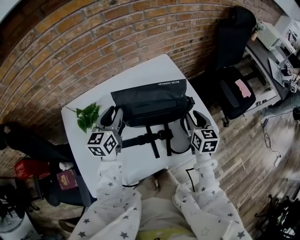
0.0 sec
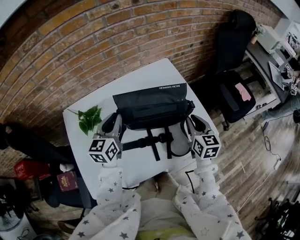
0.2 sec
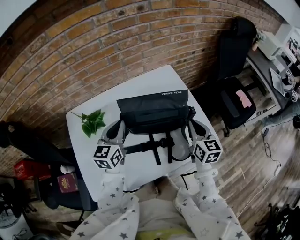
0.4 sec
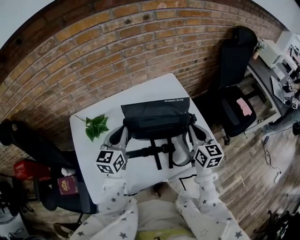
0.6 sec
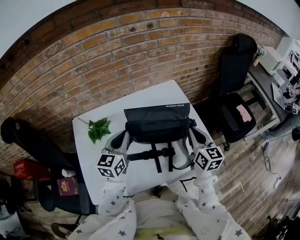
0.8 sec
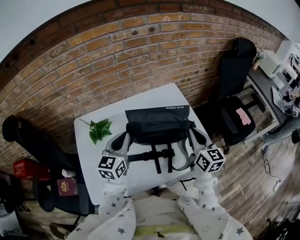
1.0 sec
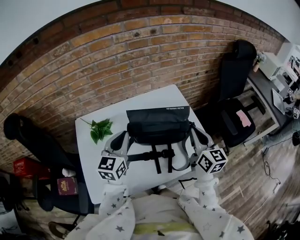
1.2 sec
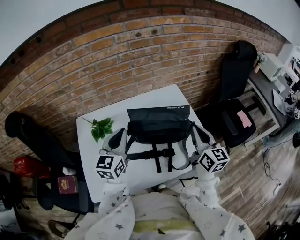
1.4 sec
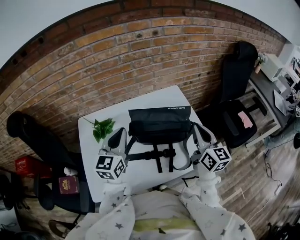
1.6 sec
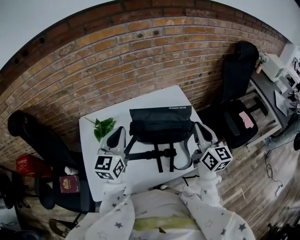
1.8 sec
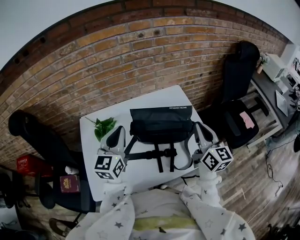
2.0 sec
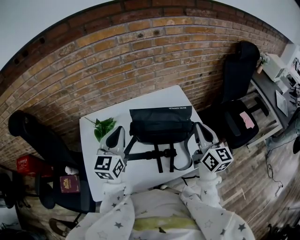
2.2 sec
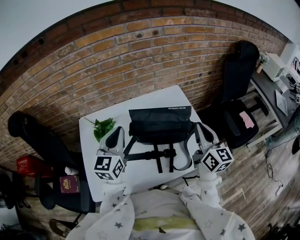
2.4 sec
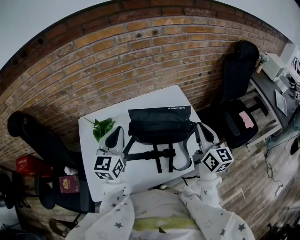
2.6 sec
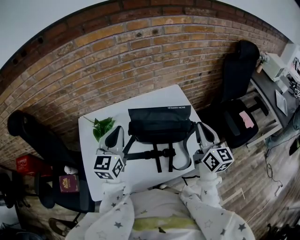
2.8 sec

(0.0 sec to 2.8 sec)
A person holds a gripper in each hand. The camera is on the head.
0.0 sec - 1.4 sec: The left gripper goes roughly 10 cm upward and backward, and closes its fingers; the right gripper is displaced upward by roughly 15 cm, swivels roughly 30 degrees, and closes its fingers.
1.4 sec - 2.8 sec: The grippers stay close to where they were, moving slightly.

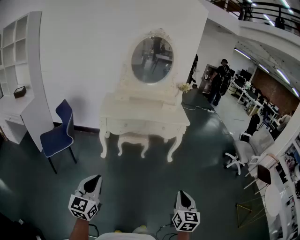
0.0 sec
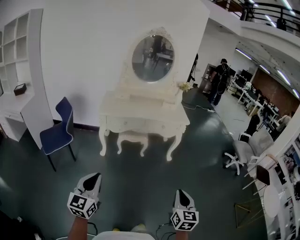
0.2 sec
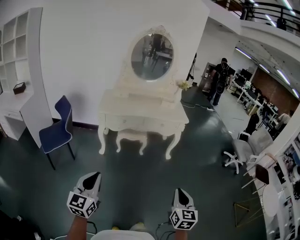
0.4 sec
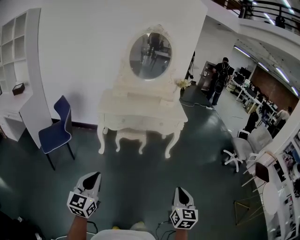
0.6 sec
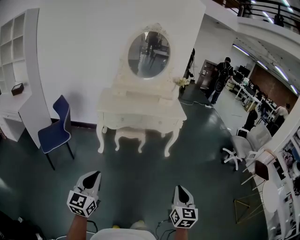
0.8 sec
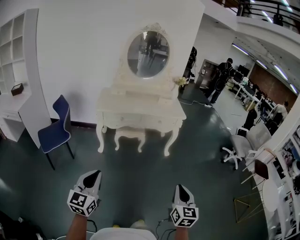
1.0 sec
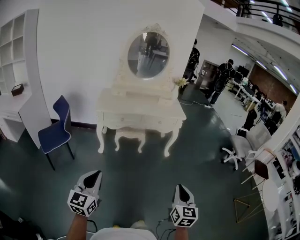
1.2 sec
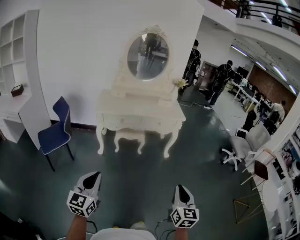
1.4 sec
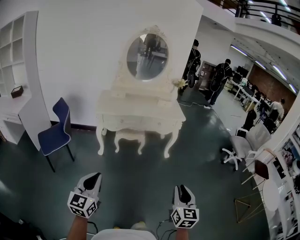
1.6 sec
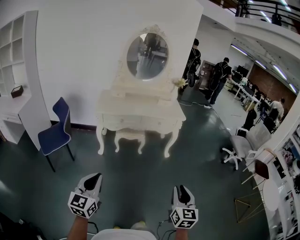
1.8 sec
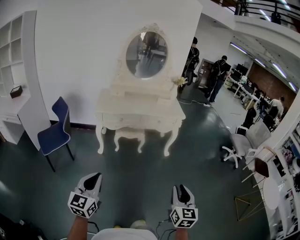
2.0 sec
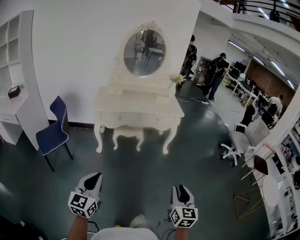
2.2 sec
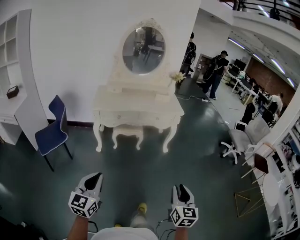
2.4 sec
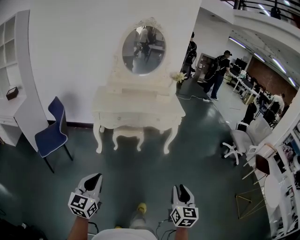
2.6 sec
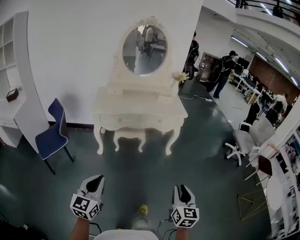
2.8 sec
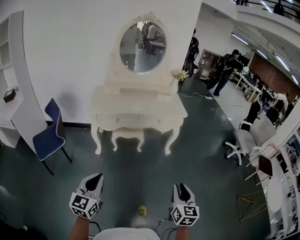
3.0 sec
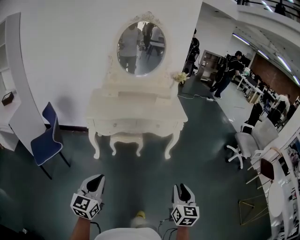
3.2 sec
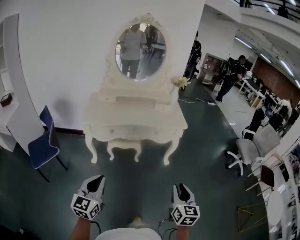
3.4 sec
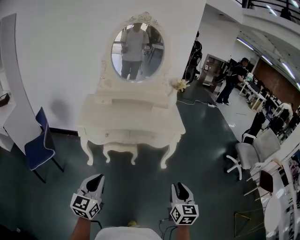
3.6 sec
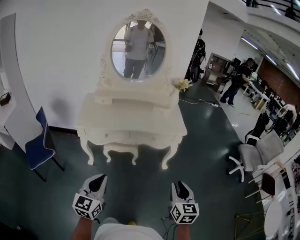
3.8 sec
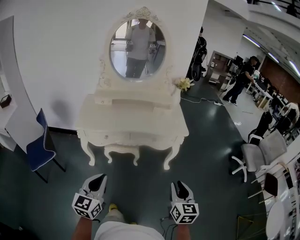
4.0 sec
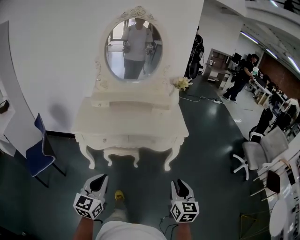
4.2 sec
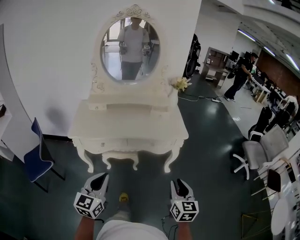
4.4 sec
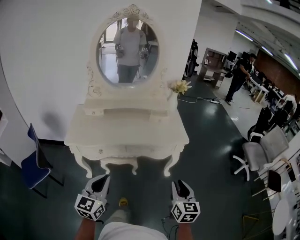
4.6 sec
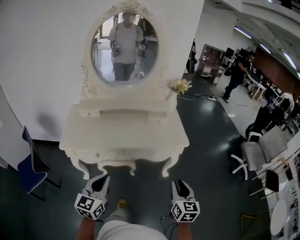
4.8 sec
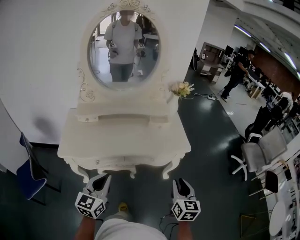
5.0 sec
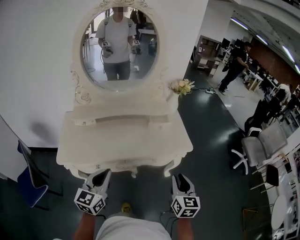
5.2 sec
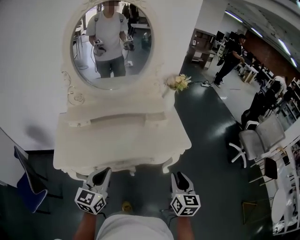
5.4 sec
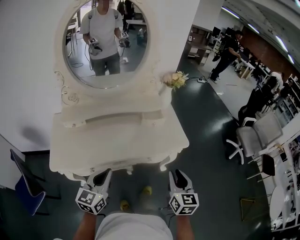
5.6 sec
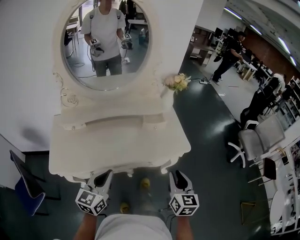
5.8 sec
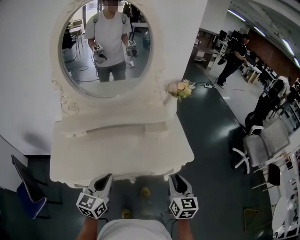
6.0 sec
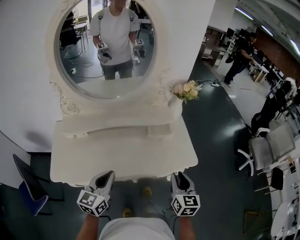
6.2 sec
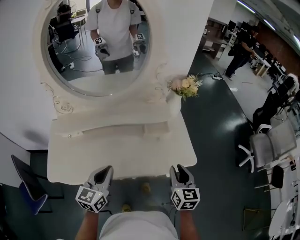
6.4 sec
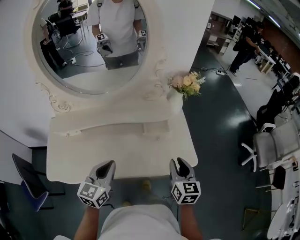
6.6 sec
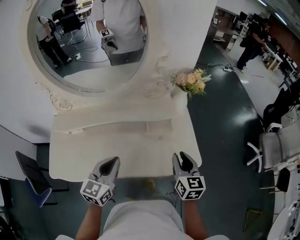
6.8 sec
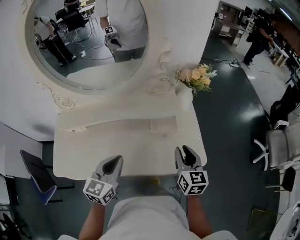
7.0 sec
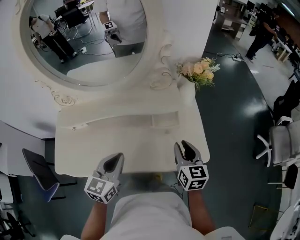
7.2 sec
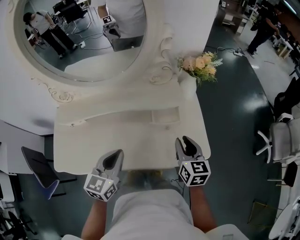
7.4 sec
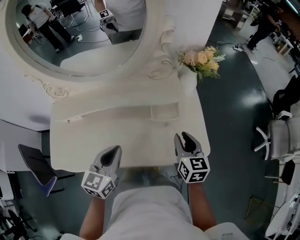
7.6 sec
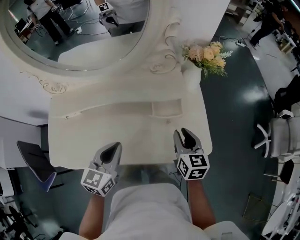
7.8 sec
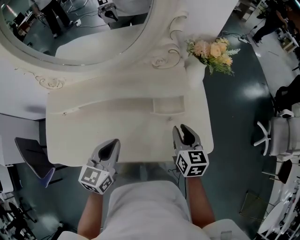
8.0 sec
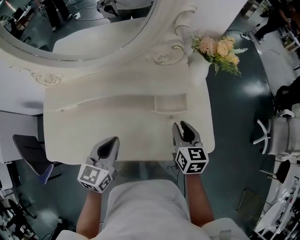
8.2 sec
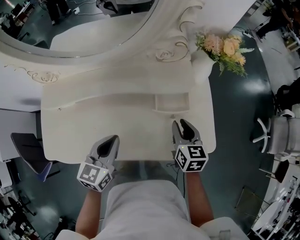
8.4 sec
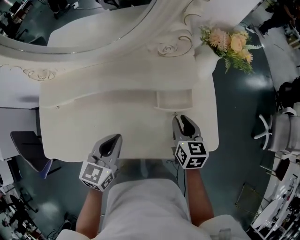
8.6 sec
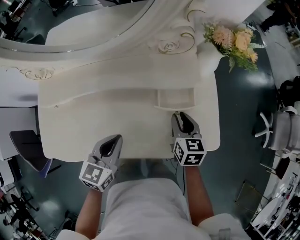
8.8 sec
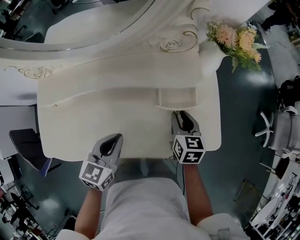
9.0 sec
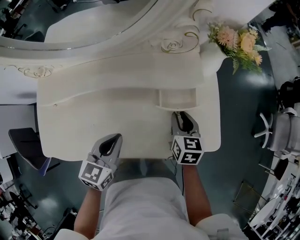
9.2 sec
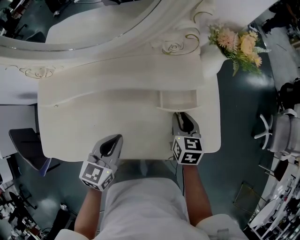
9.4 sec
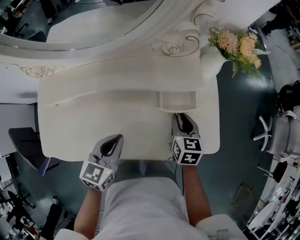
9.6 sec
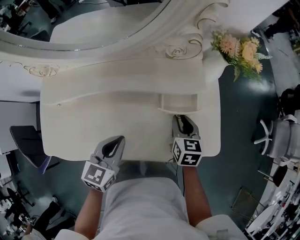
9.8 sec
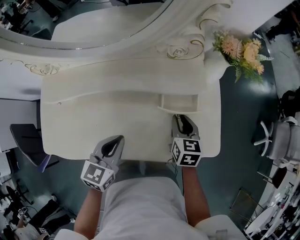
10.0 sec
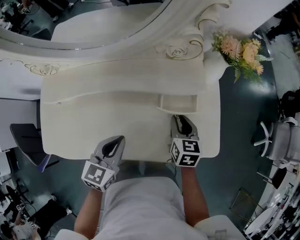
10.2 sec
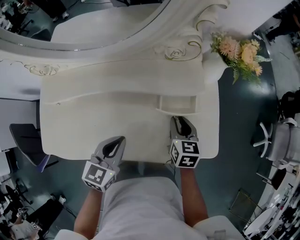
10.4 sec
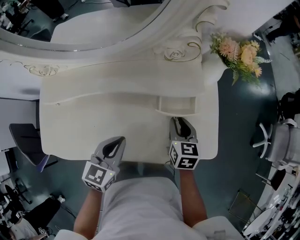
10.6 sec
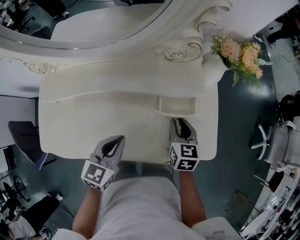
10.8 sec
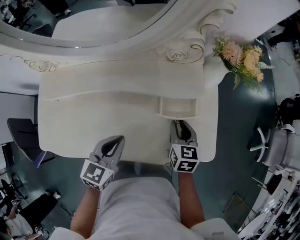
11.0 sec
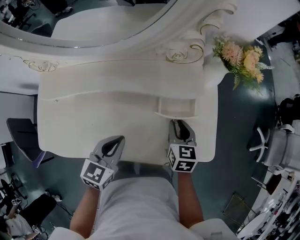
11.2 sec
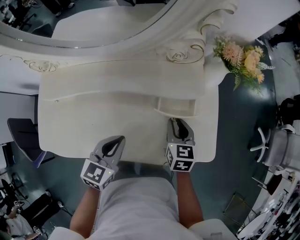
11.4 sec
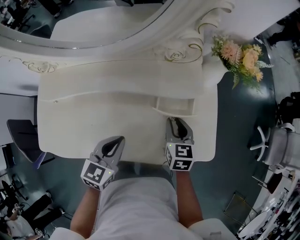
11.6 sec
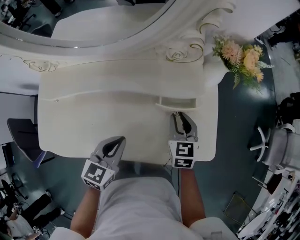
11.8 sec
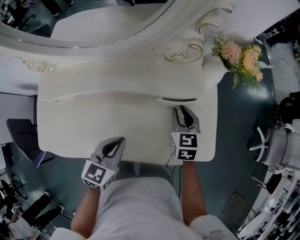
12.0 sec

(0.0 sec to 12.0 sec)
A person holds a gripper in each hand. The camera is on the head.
0.0 sec - 1.6 sec: The grippers stay close to where they were, moving slightly.
1.6 sec - 3.0 sec: Both grippers travel together forward, roughly 10 cm.
3.0 sec - 4.4 sec: The grippers both shift forward by approximately 35 cm.
4.4 sec - 6.0 sec: The grippers both shift forward by some 35 cm.
6.0 sec - 7.6 sec: The two grippers go about 20 cm forward.
7.6 sec - 9.0 sec: The left gripper travels downward by approximately 10 cm; the right gripper shifts approximately 15 cm downward, forward and to the left.
9.0 sec - 10.4 sec: Both grippers stay put.
10.4 sec - 12.0 sec: There are only small adjustments of the grippers.

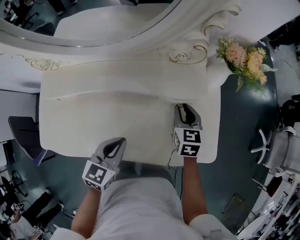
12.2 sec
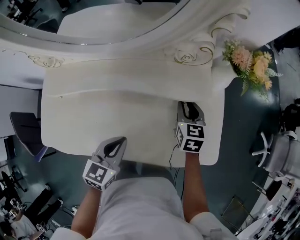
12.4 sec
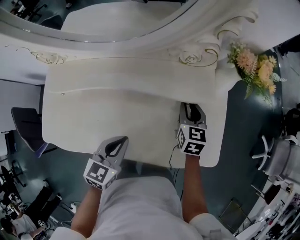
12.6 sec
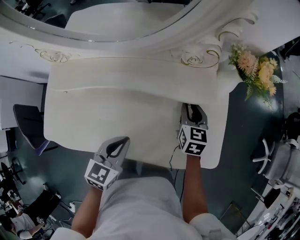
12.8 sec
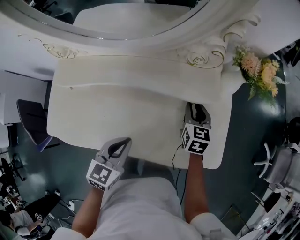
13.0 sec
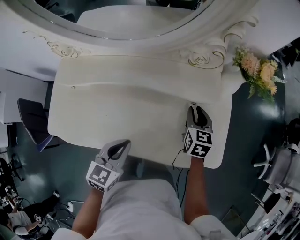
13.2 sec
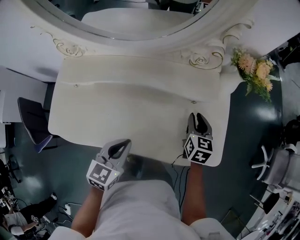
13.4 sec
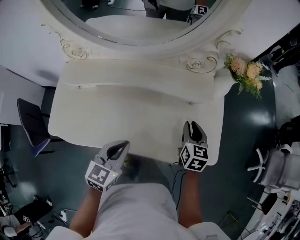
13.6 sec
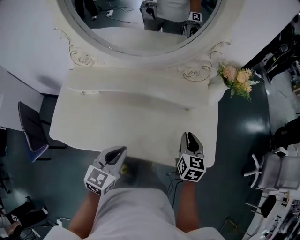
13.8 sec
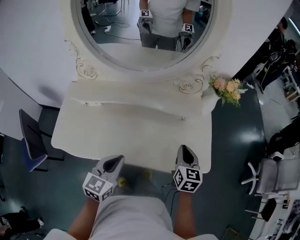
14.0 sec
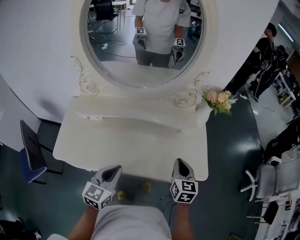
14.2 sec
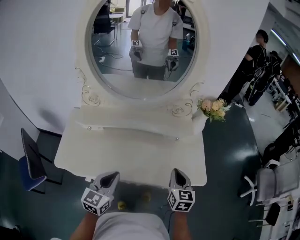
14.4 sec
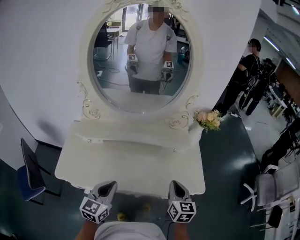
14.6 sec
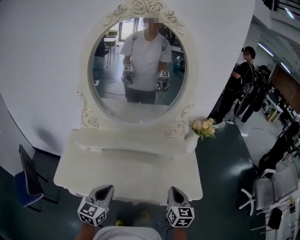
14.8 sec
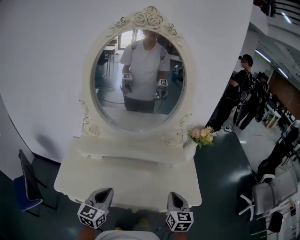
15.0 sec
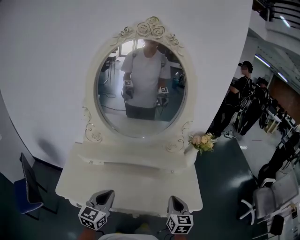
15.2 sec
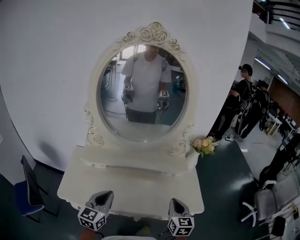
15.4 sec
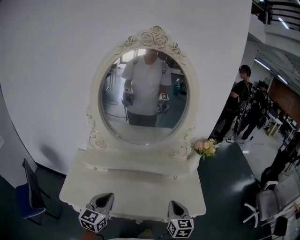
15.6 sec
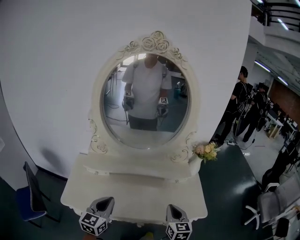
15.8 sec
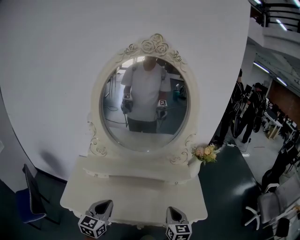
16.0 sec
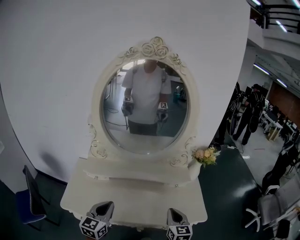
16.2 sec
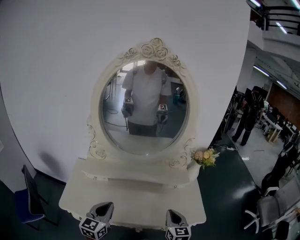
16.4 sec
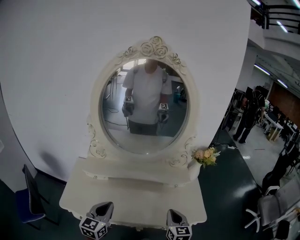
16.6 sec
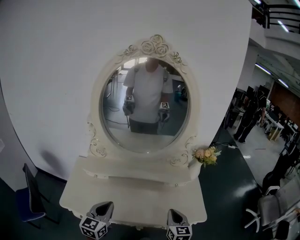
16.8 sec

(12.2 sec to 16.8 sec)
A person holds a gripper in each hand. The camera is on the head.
12.2 sec - 13.8 sec: The grippers both shift backward and upward by some 15 cm.
13.8 sec - 15.2 sec: The right gripper travels backward and upward by roughly 20 cm, while the left gripper goes approximately 15 cm upward and to the left.
15.2 sec - 16.8 sec: The grippers stay close to where they were, moving slightly.

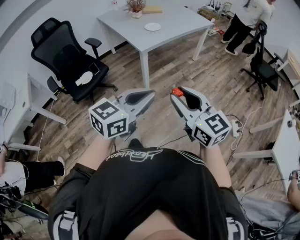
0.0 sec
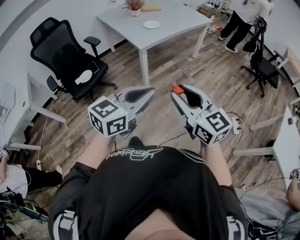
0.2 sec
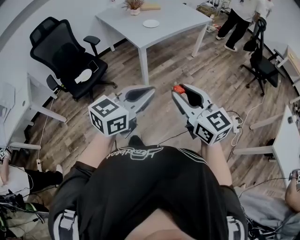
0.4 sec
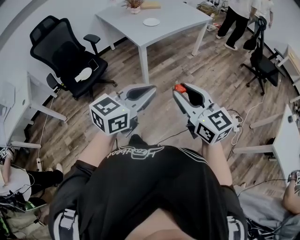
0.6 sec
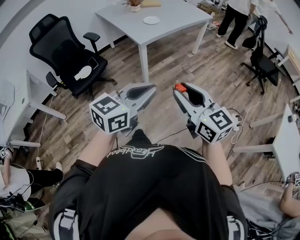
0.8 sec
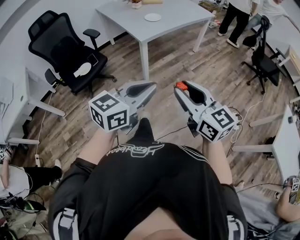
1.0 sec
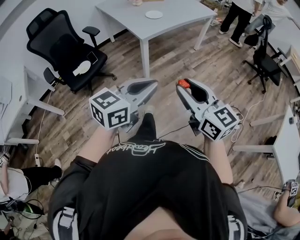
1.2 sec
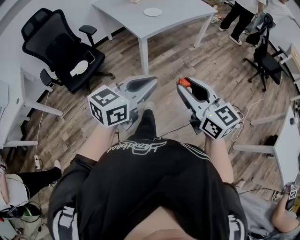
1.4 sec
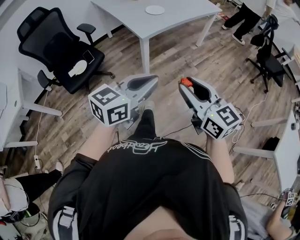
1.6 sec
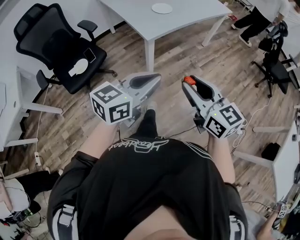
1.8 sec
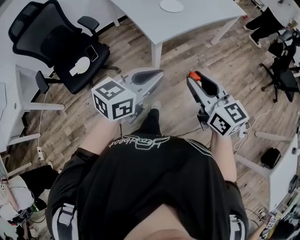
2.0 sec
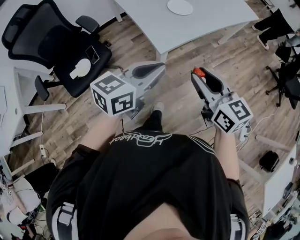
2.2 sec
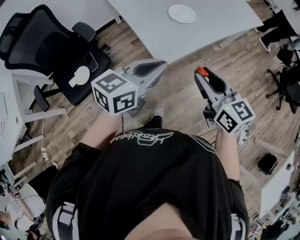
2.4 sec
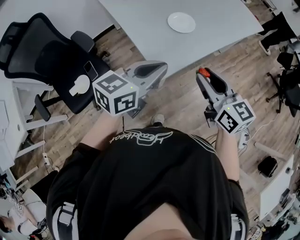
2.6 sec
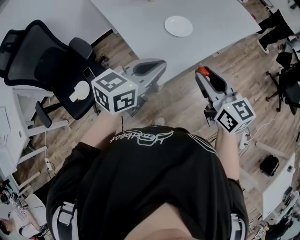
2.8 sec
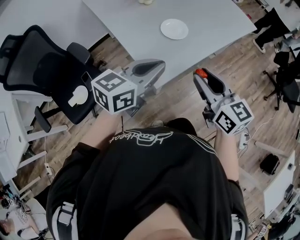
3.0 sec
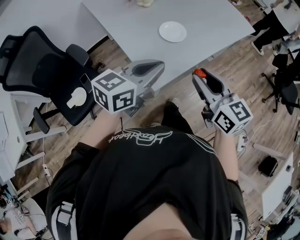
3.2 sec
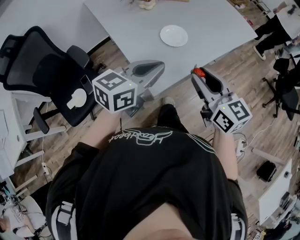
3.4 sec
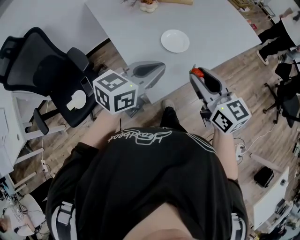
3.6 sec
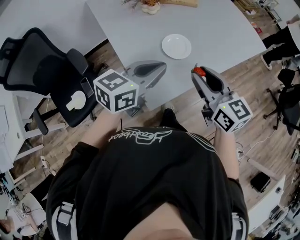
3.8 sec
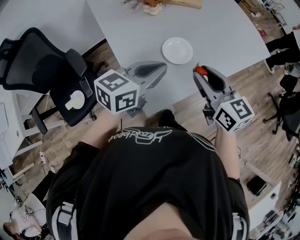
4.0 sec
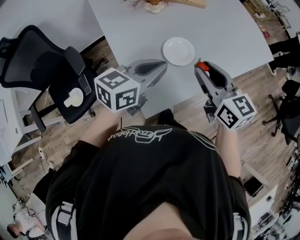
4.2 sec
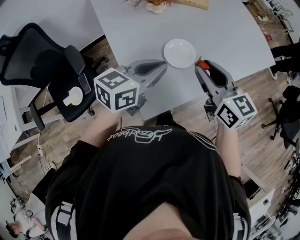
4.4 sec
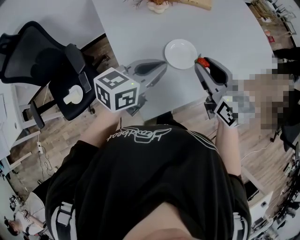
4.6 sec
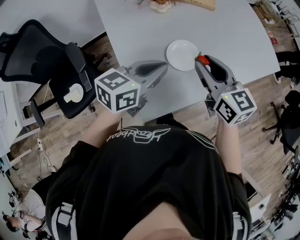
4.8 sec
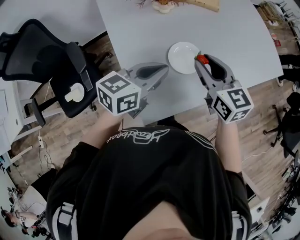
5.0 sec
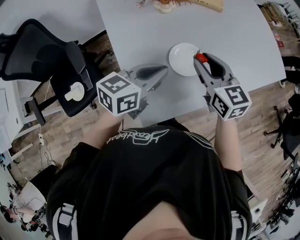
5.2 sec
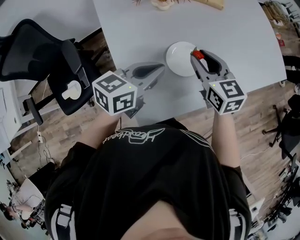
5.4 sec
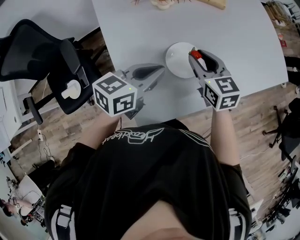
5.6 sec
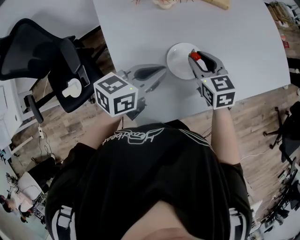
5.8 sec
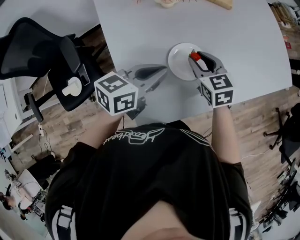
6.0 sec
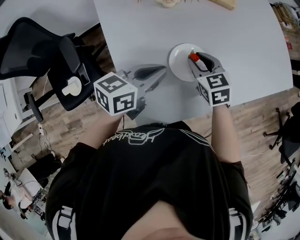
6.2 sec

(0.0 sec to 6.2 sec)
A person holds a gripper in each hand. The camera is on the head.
0.0 sec - 1.6 sec: The right gripper travels forward and downward by about 10 cm. The left gripper moves forward, about 10 cm.
1.6 sec - 3.2 sec: Both grippers are carried forward, roughly 50 cm.
3.2 sec - 4.6 sec: The grippers both shift forward by some 20 cm.
4.6 sec - 6.2 sec: The right gripper heads downward and forward, covering approximately 20 cm, and swivels about 30 degrees; the left gripper heads downward and forward, covering roughly 10 cm.
